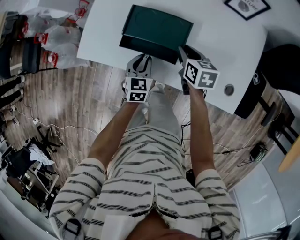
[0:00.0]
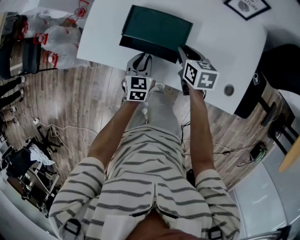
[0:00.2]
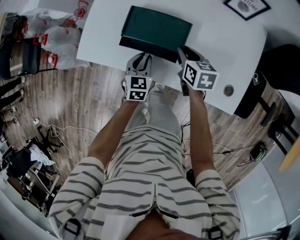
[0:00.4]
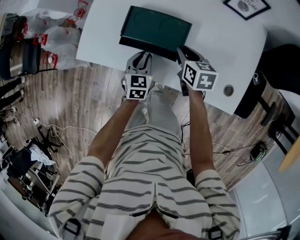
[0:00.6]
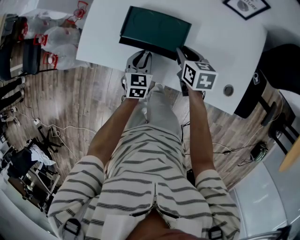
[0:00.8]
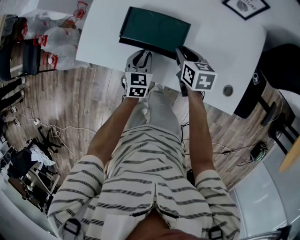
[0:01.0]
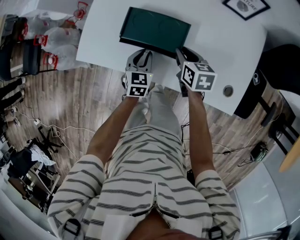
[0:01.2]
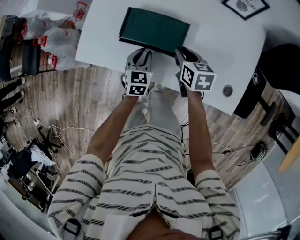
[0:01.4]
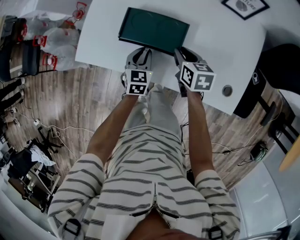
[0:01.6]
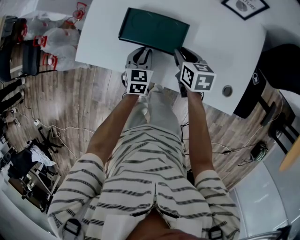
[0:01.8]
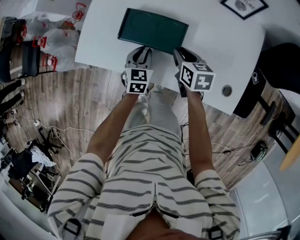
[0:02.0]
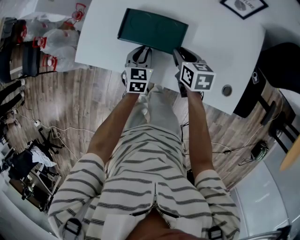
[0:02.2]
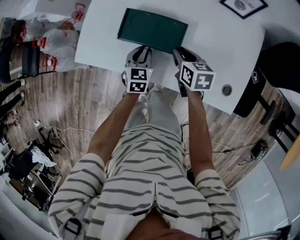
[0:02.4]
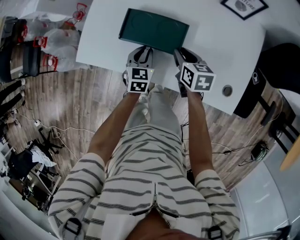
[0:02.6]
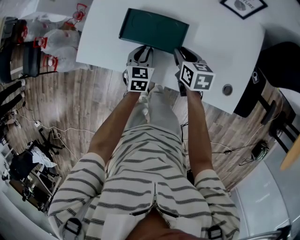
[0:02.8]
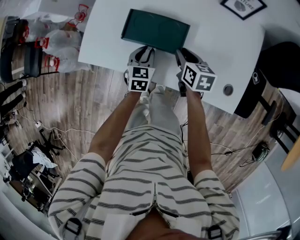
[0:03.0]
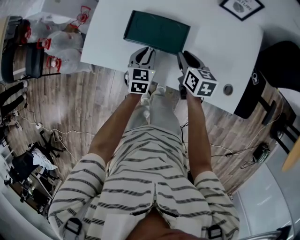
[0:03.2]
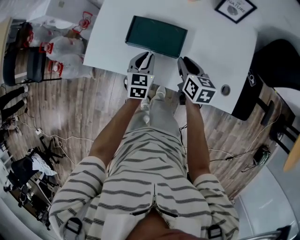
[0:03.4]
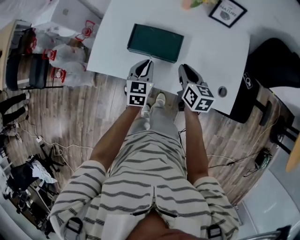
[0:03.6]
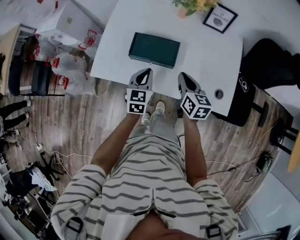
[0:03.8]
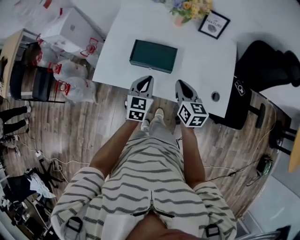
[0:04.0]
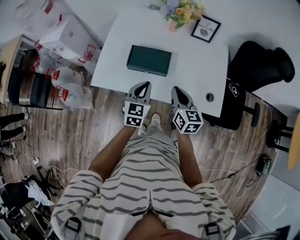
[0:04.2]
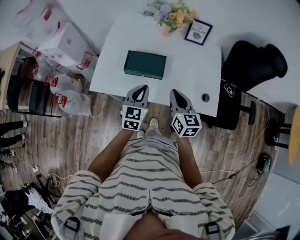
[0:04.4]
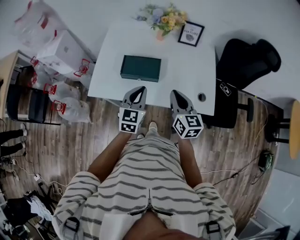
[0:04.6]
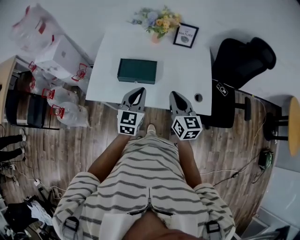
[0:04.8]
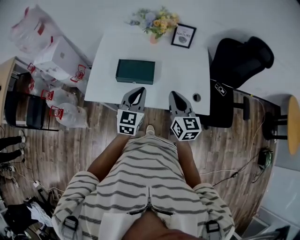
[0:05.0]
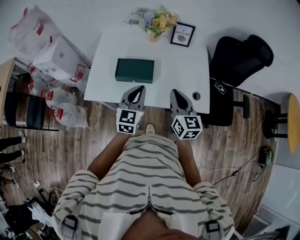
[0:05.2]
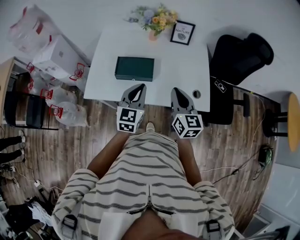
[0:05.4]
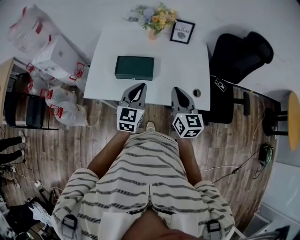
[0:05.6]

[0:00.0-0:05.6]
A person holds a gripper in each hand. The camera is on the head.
0:00.0 to 0:01.4: The grippers stay close to where they were, moving slightly.
0:01.4 to 0:02.8: Both grippers stay about where they are.
0:02.8 to 0:04.2: The two grippers go about 25 cm upward and backward. The right gripper changes its angle by approximately 30 degrees, and closes up.
0:04.2 to 0:05.6: The left gripper travels upward by some 10 cm. The right gripper goes about 10 cm upward and to the right.

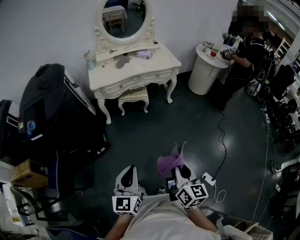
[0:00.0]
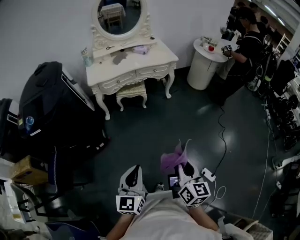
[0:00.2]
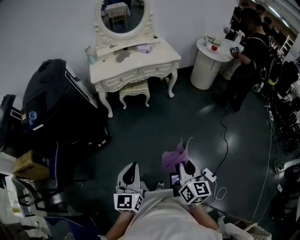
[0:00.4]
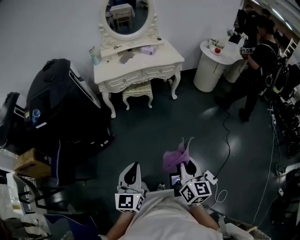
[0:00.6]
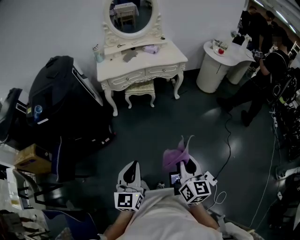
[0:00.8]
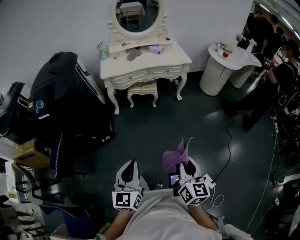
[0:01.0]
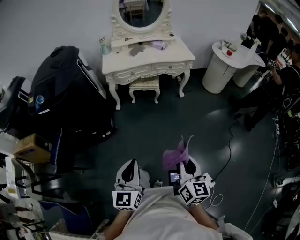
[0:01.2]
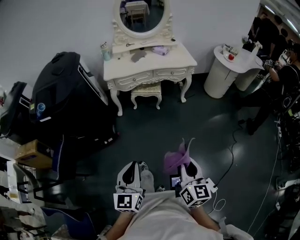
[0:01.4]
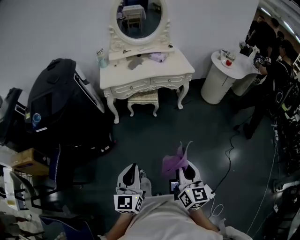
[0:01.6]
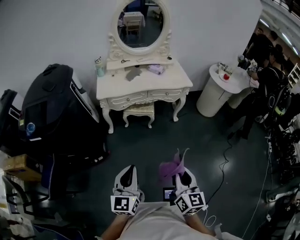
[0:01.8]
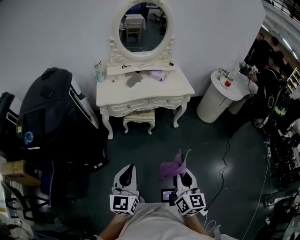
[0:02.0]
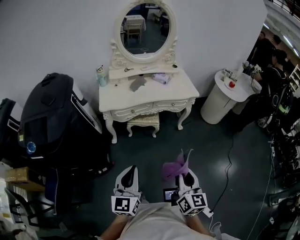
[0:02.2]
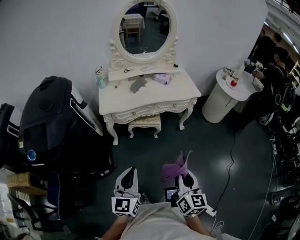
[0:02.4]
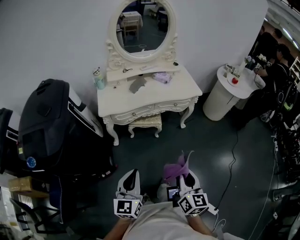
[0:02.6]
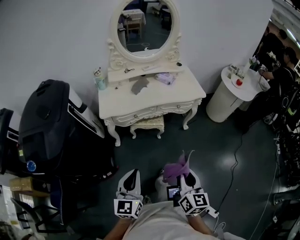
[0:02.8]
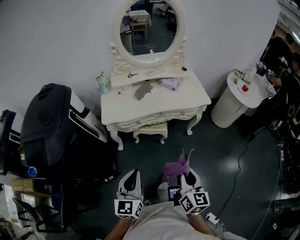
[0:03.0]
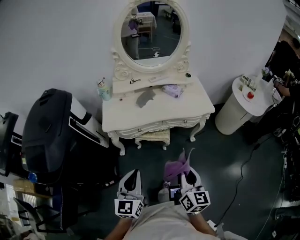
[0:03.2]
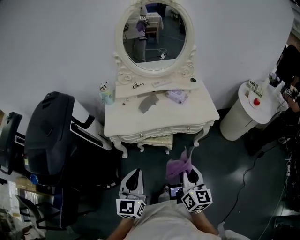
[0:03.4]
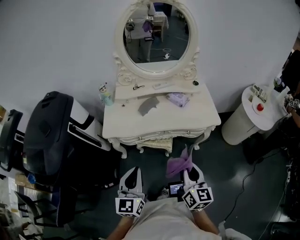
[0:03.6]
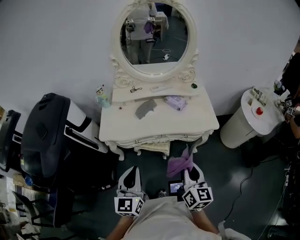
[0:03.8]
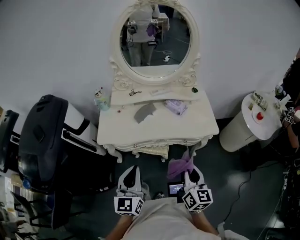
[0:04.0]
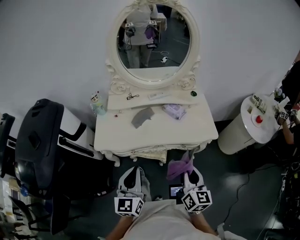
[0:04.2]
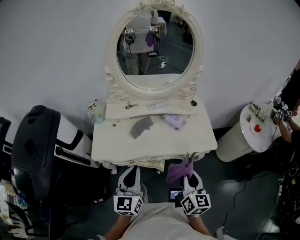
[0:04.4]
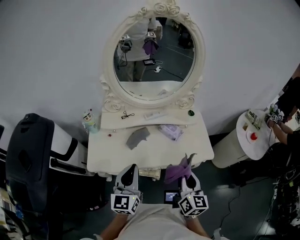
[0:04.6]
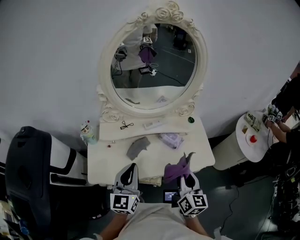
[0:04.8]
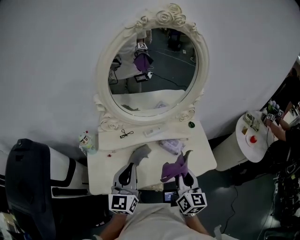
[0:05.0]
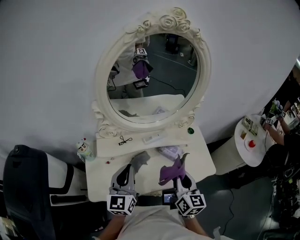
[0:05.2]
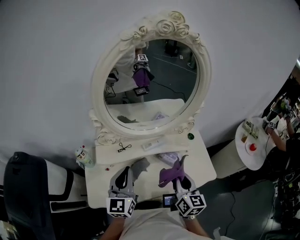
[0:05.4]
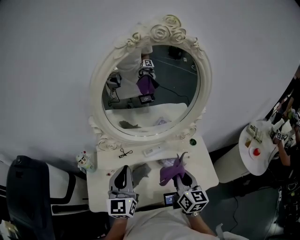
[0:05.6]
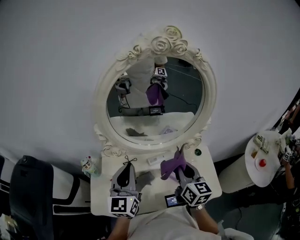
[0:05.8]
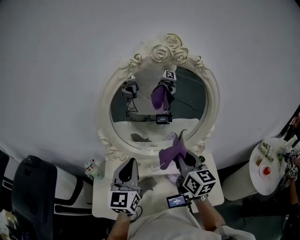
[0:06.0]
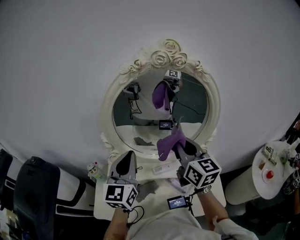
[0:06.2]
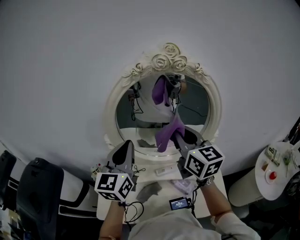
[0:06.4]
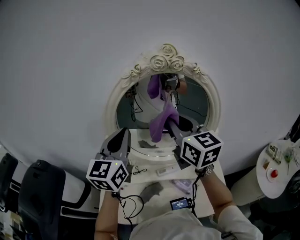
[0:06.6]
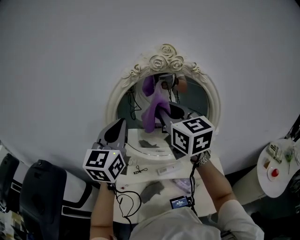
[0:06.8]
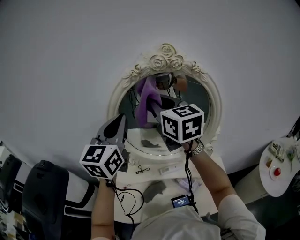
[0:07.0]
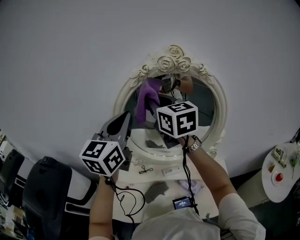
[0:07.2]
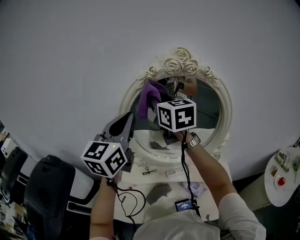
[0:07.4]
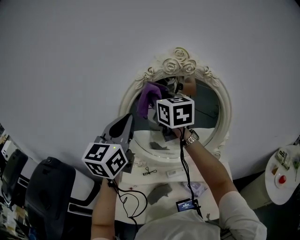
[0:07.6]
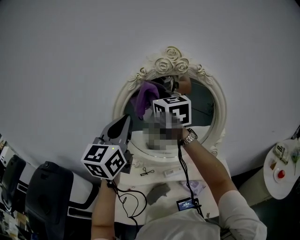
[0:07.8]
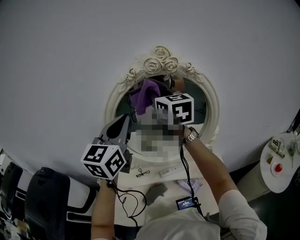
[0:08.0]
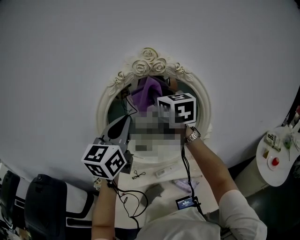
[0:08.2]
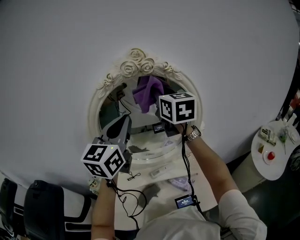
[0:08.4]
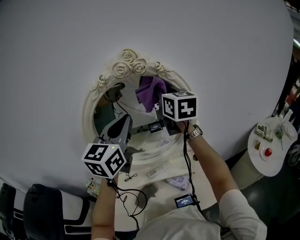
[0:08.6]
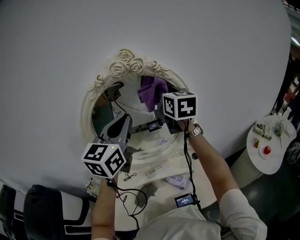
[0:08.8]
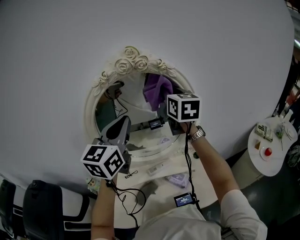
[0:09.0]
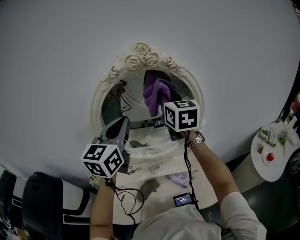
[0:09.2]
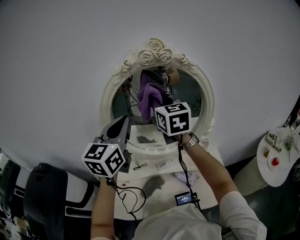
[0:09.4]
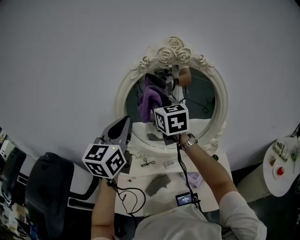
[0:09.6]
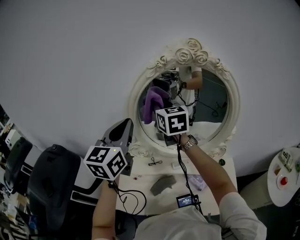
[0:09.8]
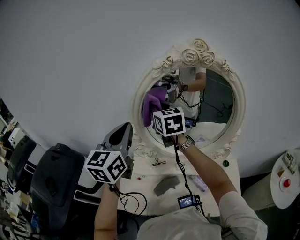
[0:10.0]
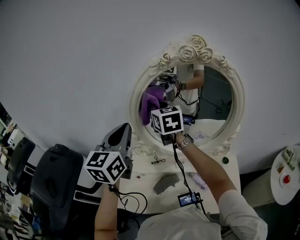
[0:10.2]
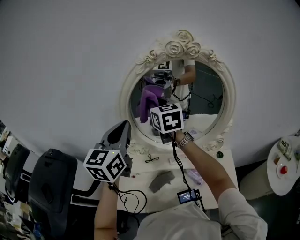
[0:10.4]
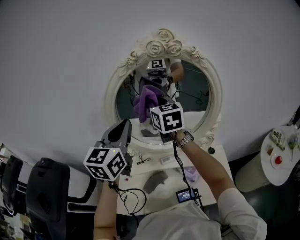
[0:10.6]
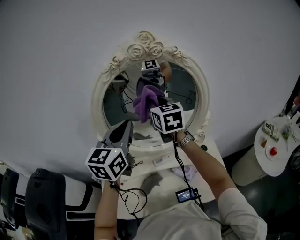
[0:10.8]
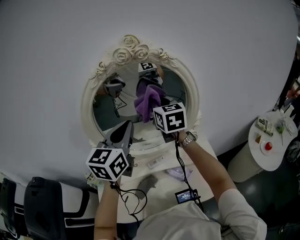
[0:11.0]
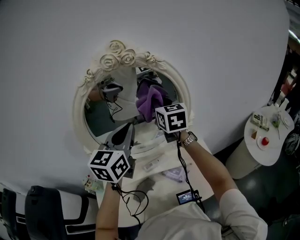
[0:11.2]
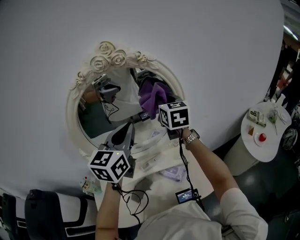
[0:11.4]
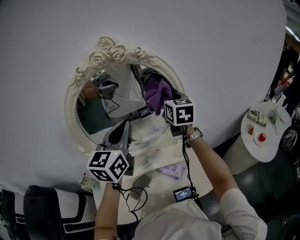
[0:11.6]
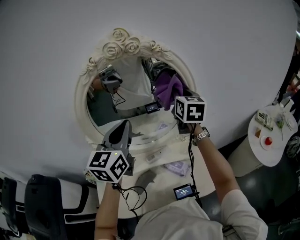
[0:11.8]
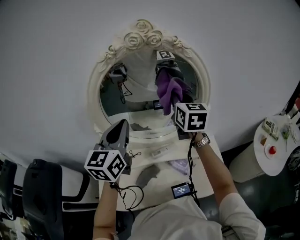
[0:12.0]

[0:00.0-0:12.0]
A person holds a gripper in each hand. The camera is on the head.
0:00.0 to 0:01.6: The right gripper is displaced forward by roughly 5 cm; the left gripper moves roughly 5 cm.
0:01.6 to 0:03.0: The two grippers go some 35 cm forward.
0:03.0 to 0:04.4: Both grippers travel together forward, about 35 cm.
0:04.4 to 0:06.0: The right gripper goes roughly 40 cm forward. Meanwhile the left gripper heads forward and upward, covering about 40 cm.
0:06.0 to 0:07.6: The left gripper goes some 20 cm upward. The right gripper heads upward, forward and to the left, covering about 30 cm.
0:07.6 to 0:09.0: The left gripper goes roughly 10 cm to the right; the right gripper is displaced to the right by approximately 20 cm, and turns by roughly 20 degrees.
0:09.0 to 0:10.4: The left gripper heads to the left, covering about 15 cm, while the right gripper shifts approximately 25 cm to the left, and turns by approximately 20 degrees.
0:10.4 to 0:12.0: The left gripper shifts about 10 cm to the right; the right gripper goes some 20 cm to the right, and swivels some 20 degrees.

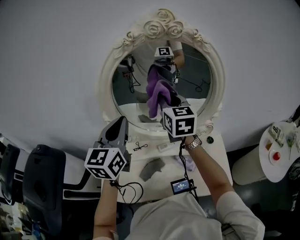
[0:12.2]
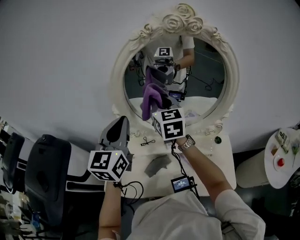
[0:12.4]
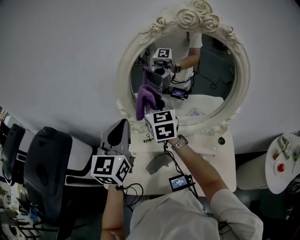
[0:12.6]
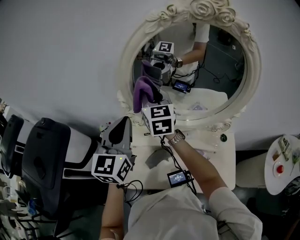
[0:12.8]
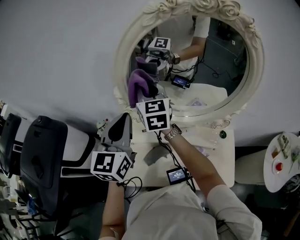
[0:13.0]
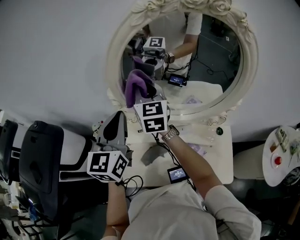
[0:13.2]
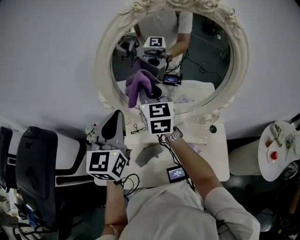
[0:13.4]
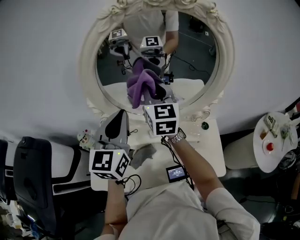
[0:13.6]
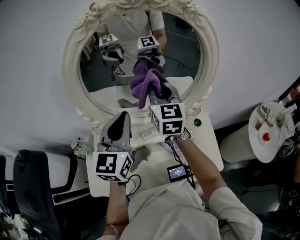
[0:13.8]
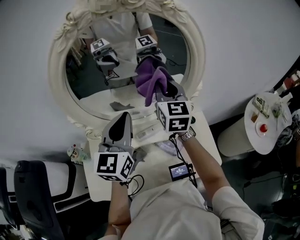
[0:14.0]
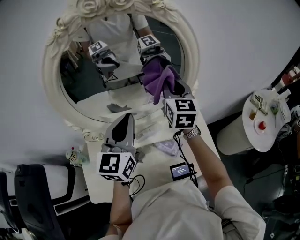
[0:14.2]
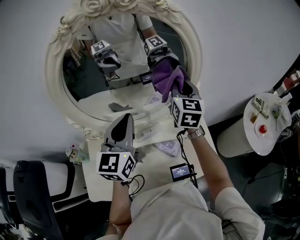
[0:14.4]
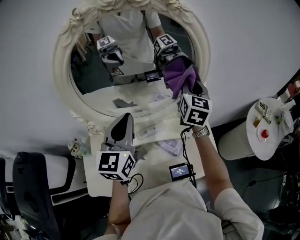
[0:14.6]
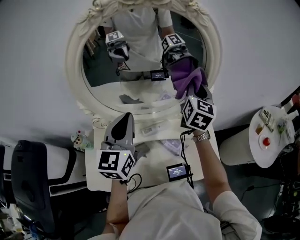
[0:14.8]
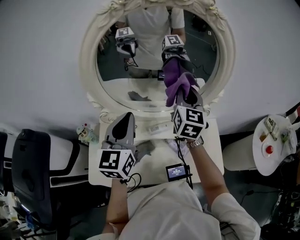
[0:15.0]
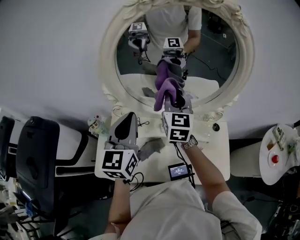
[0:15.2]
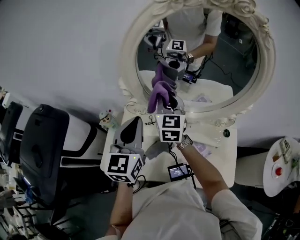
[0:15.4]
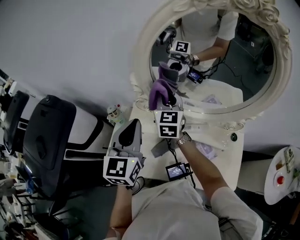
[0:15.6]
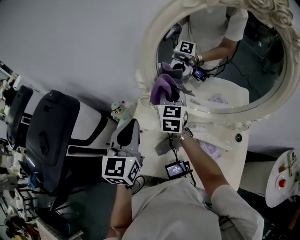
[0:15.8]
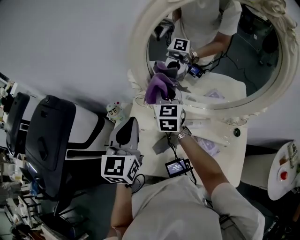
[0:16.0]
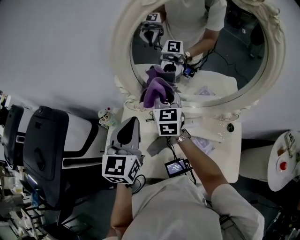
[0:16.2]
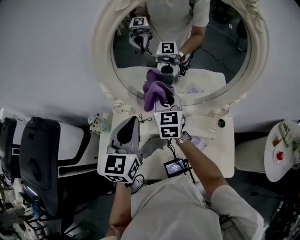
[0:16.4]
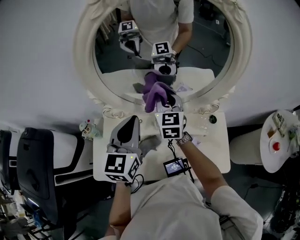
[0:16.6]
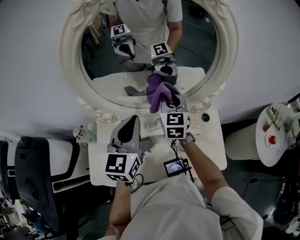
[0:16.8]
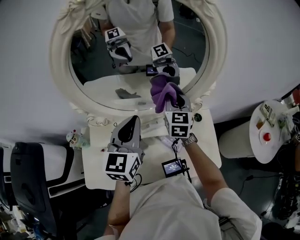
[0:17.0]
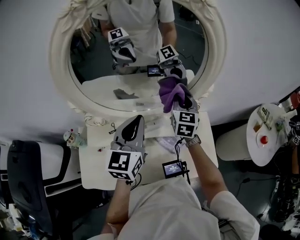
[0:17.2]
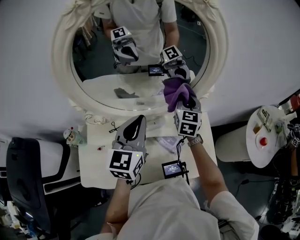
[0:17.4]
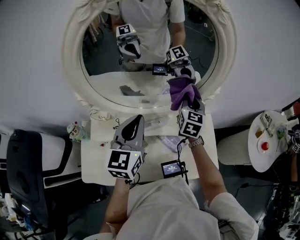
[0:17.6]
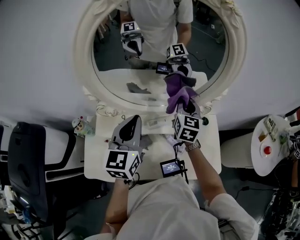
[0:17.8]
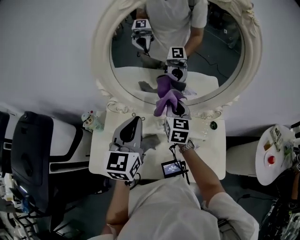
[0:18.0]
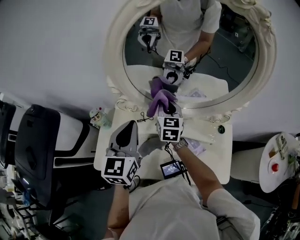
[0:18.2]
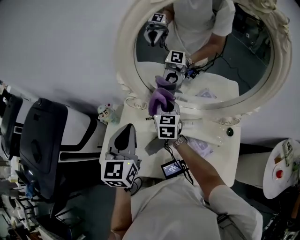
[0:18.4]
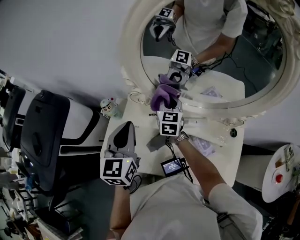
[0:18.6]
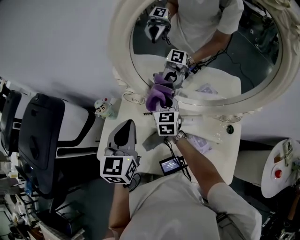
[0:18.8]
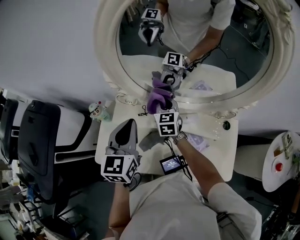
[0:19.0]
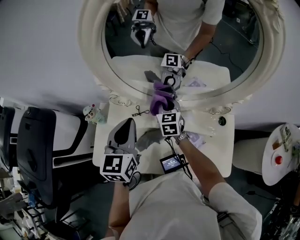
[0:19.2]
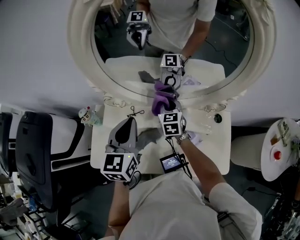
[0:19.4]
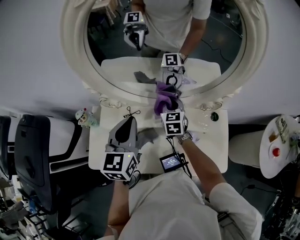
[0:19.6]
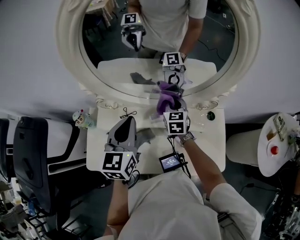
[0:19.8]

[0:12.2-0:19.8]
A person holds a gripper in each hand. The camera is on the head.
0:12.2 to 0:13.8: The right gripper moves downward, roughly 5 cm, and travels to the left and back again, approximately 20 cm each way, while the left gripper heads to the right and downward, covering some 10 cm.
0:13.8 to 0:15.2: The left gripper moves to the left and backward, some 10 cm, while the right gripper heads downward, covering roughly 5 cm, and reaches approximately 15 cm to the right, then returns.
0:15.2 to 0:16.8: The left gripper shifts about 10 cm to the right. The right gripper goes roughly 5 cm downward, and goes to the left and returns, about 15 cm each way.
0:16.8 to 0:18.2: The right gripper moves to the left and downward, about 15 cm. The left gripper is displaced to the left and backward by approximately 10 cm.
0:18.2 to 0:19.8: The left gripper shifts about 10 cm to the right; the right gripper goes about 15 cm to the right and downward.
